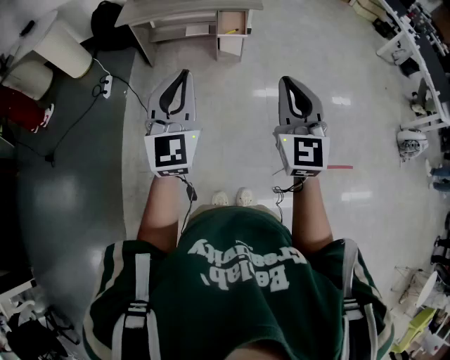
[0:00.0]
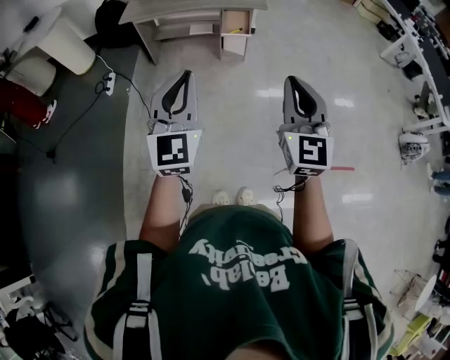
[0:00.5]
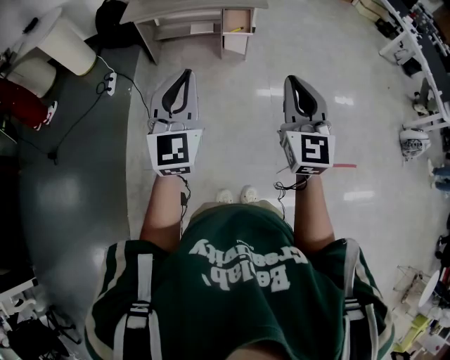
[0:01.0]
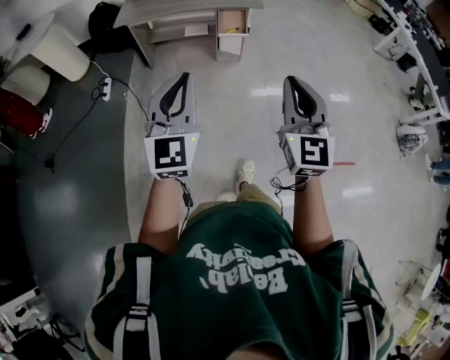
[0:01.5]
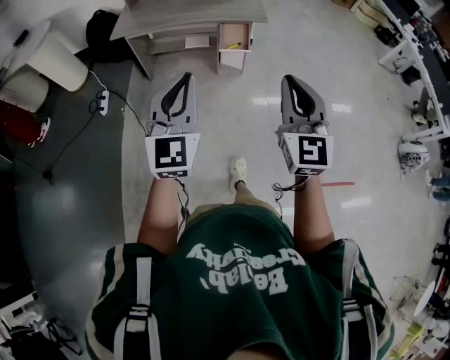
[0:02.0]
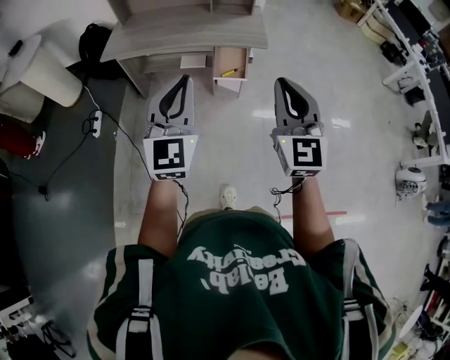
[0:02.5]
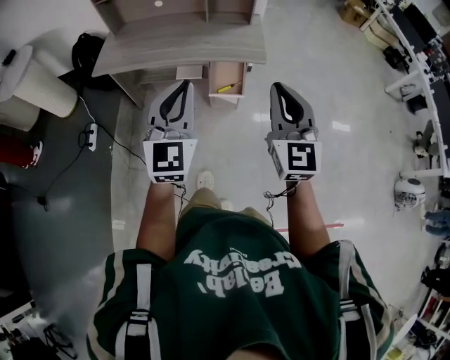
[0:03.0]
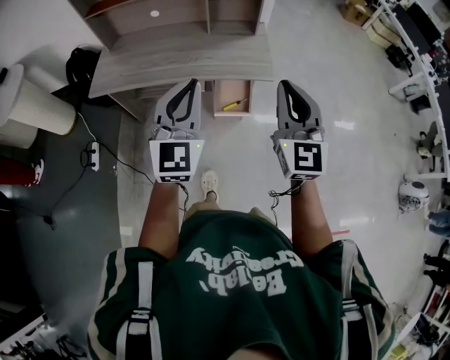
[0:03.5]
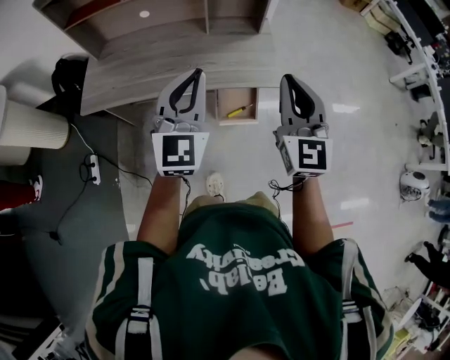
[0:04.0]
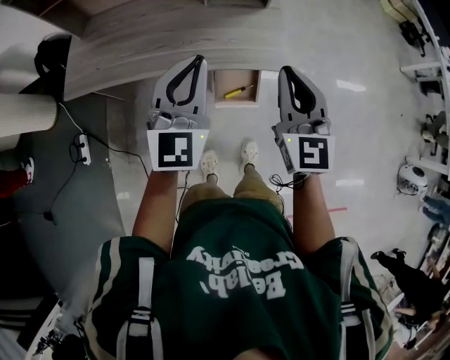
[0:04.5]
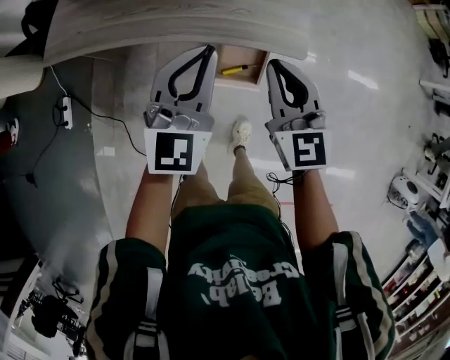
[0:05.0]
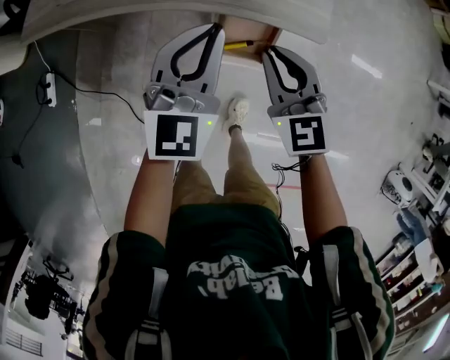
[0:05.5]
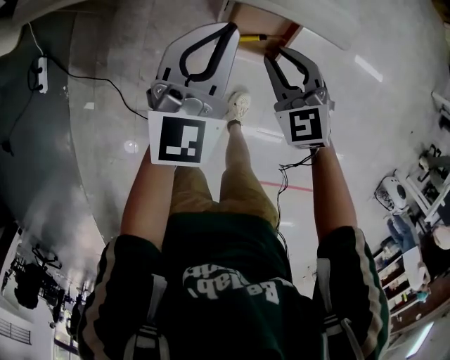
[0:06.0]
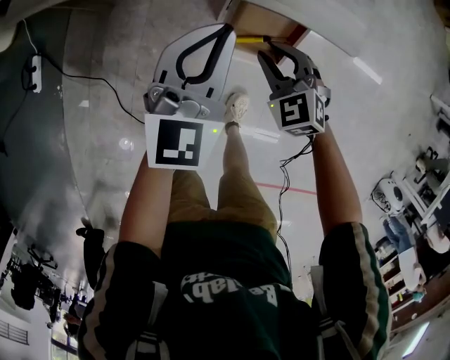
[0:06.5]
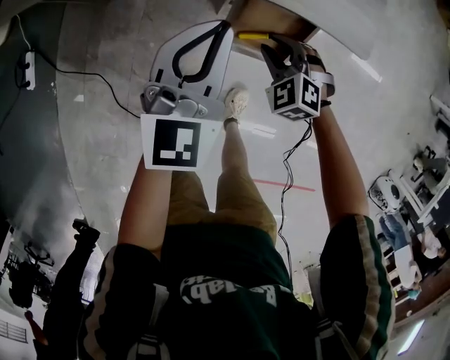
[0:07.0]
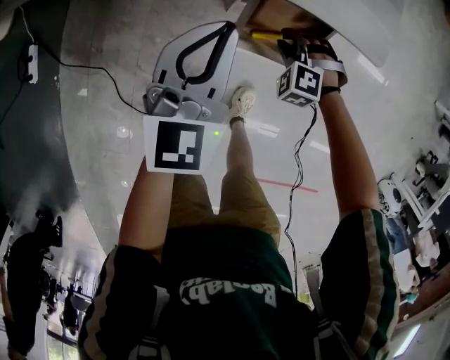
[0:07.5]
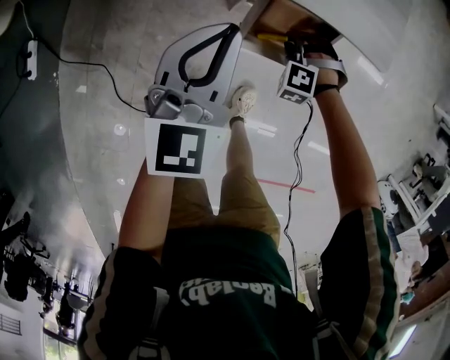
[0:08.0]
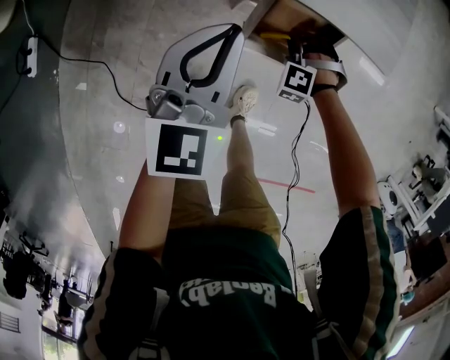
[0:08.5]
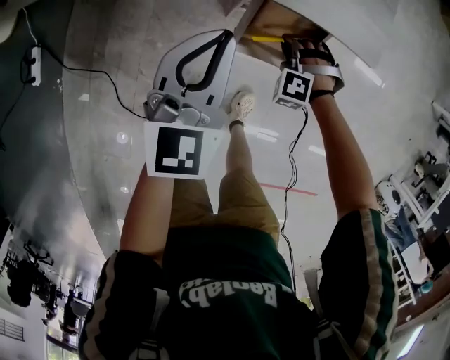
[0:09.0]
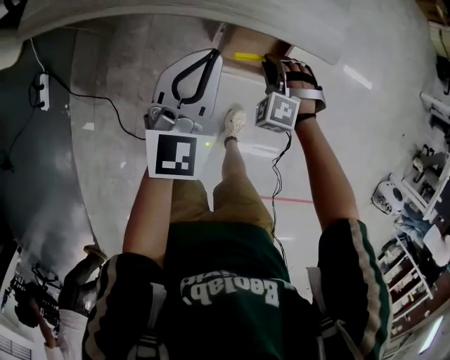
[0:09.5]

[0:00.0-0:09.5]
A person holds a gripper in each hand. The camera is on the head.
0.0 to 2.0 s: Both grippers travel together forward, roughly 15 cm.
2.0 to 4.0 s: The two grippers travel together, forward, approximately 70 cm.
4.0 to 5.5 s: The left gripper shifts roughly 30 cm downward and forward. The right gripper shifts approximately 35 cm downward, and rotates approximately 40 degrees.
5.5 to 7.5 s: The left gripper moves downward and to the left, some 15 cm; the right gripper goes approximately 35 cm downward, tips its fingers downward by about 40 degrees, and opens its fingers.
7.5 to 9.5 s: Both grippers travel together upward, about 10 cm.

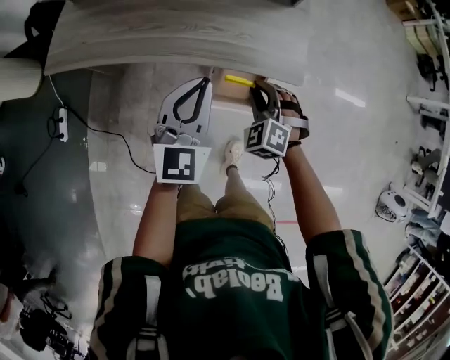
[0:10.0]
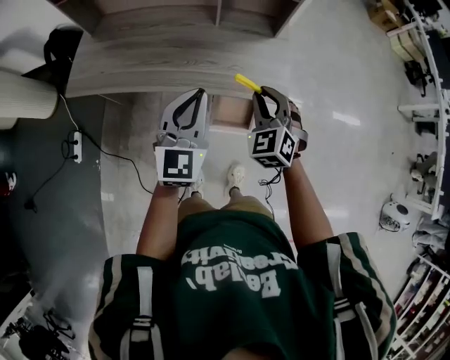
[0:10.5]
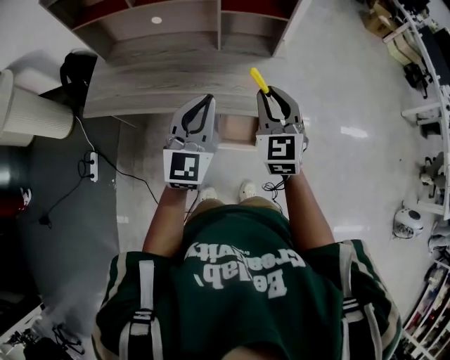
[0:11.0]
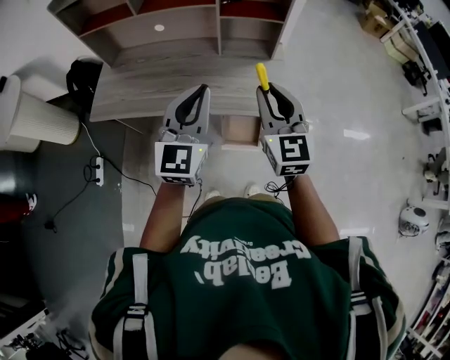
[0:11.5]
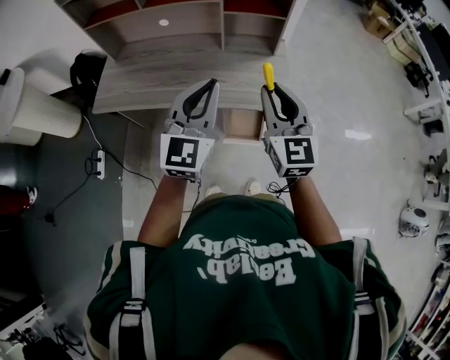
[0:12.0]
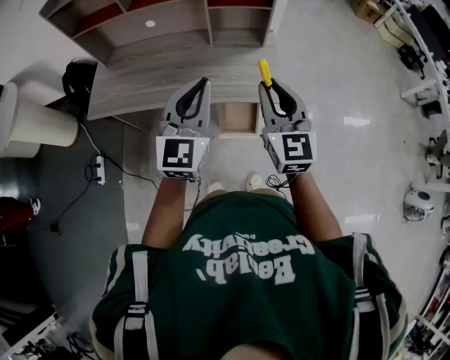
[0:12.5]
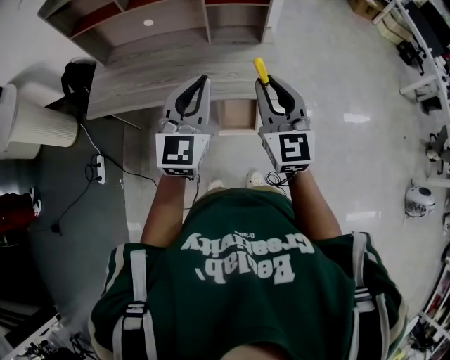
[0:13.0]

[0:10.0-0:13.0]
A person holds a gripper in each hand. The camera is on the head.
10.0 to 11.5 s: The left gripper travels upward by approximately 25 cm. The right gripper is displaced upward by roughly 35 cm, and points its fingers about 40 degrees further upward.
11.5 to 13.0 s: The right gripper moves backward, approximately 5 cm.

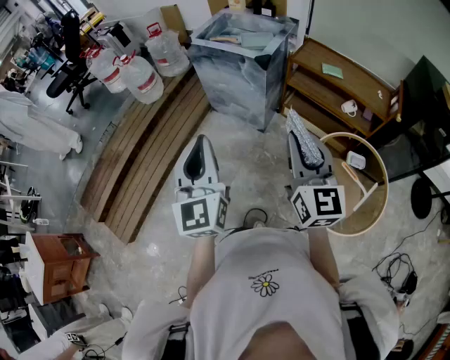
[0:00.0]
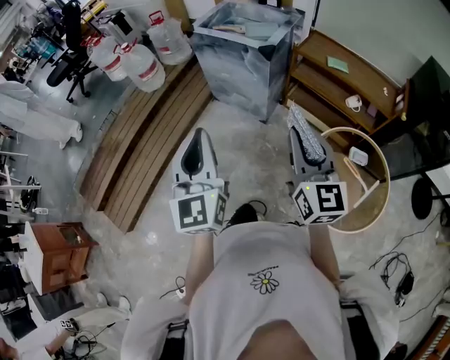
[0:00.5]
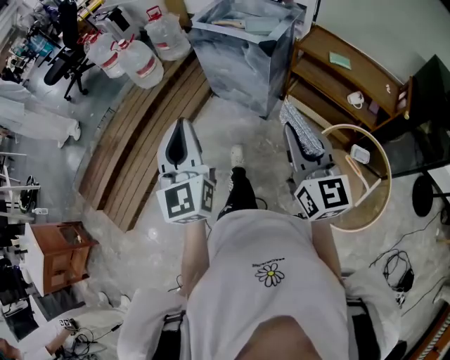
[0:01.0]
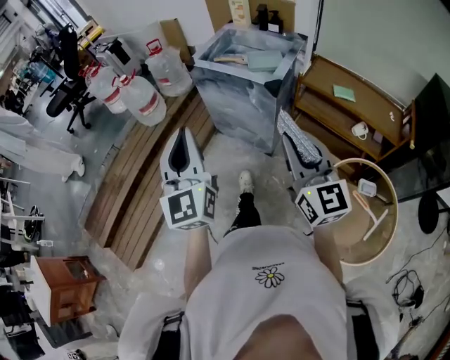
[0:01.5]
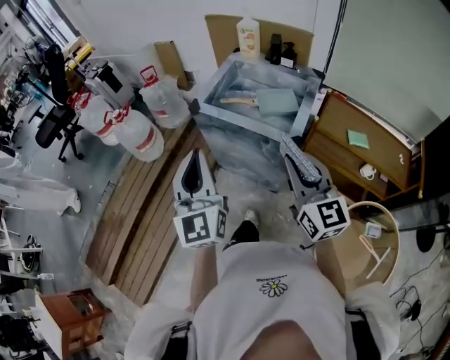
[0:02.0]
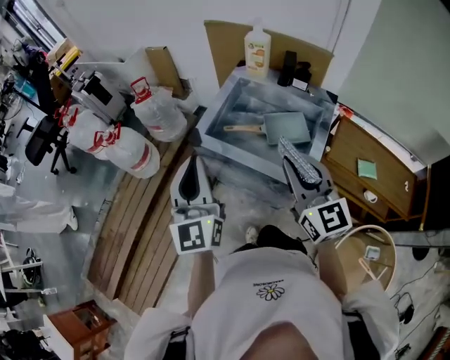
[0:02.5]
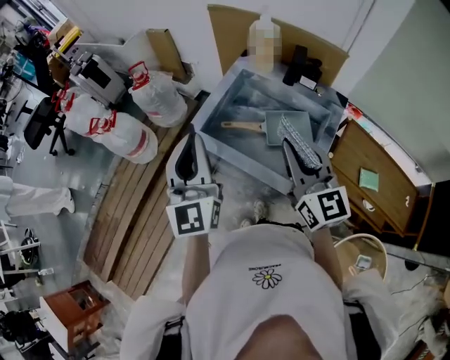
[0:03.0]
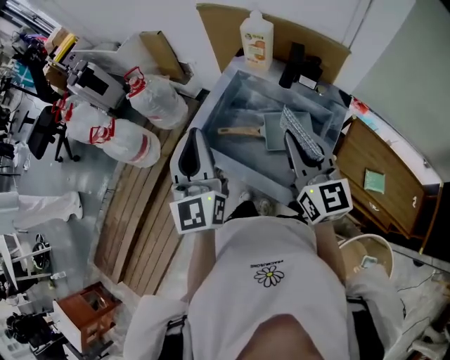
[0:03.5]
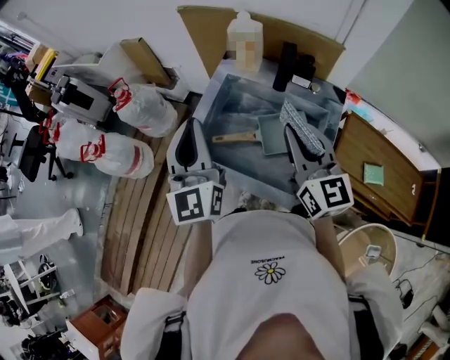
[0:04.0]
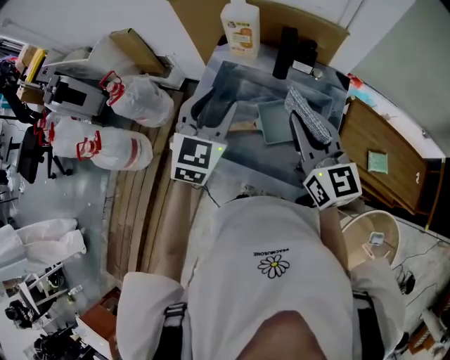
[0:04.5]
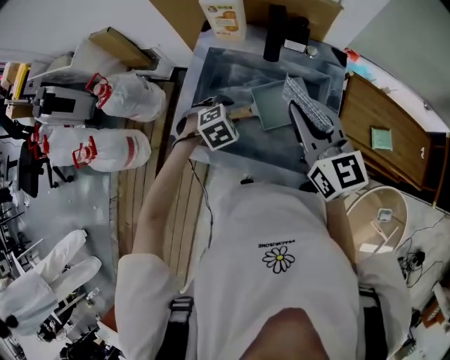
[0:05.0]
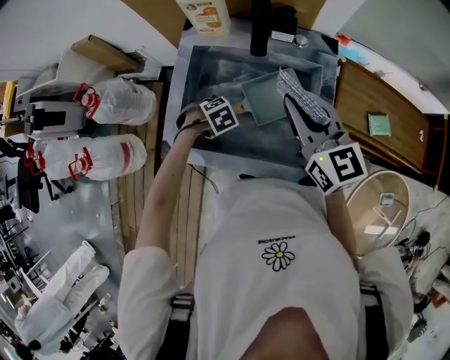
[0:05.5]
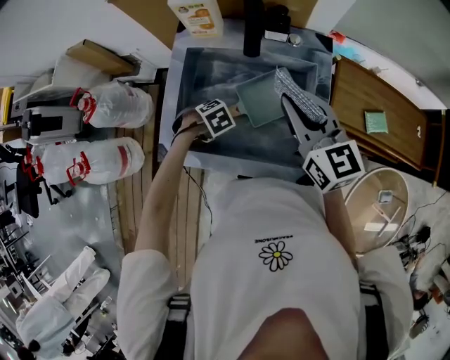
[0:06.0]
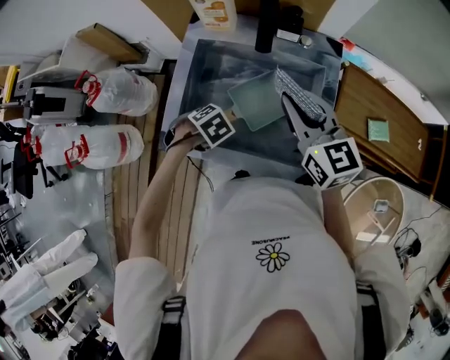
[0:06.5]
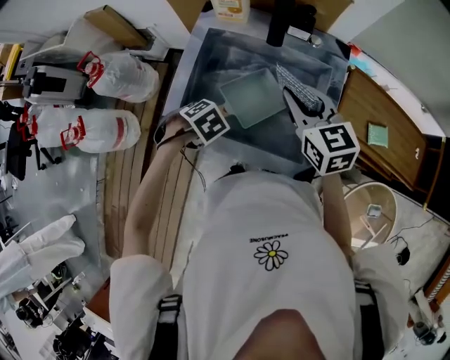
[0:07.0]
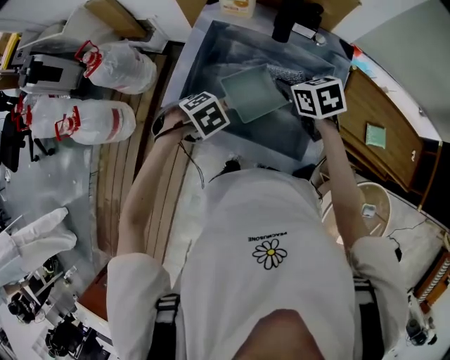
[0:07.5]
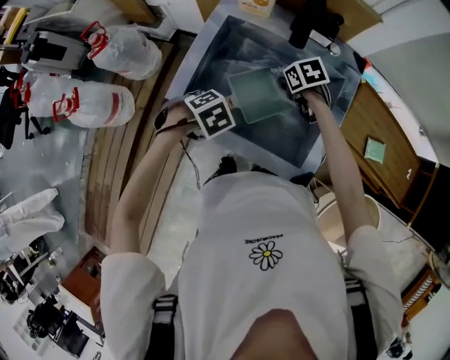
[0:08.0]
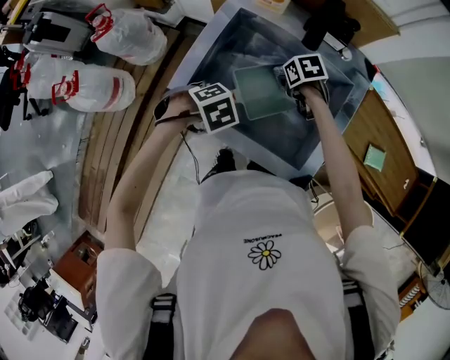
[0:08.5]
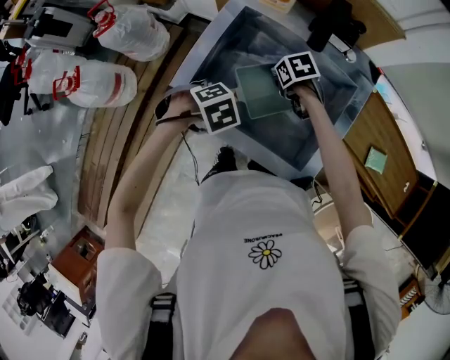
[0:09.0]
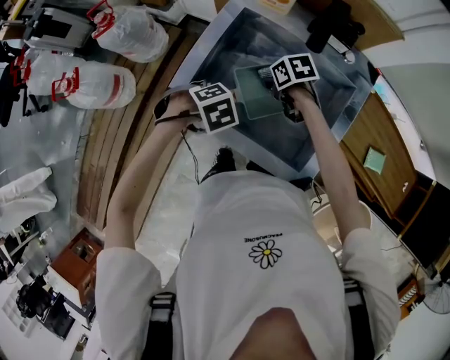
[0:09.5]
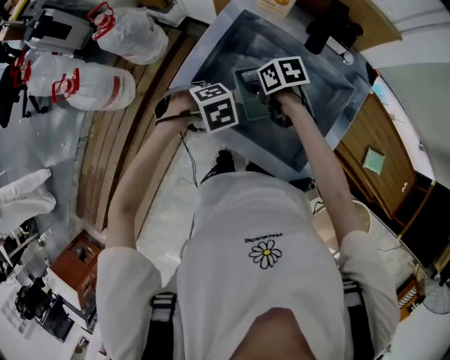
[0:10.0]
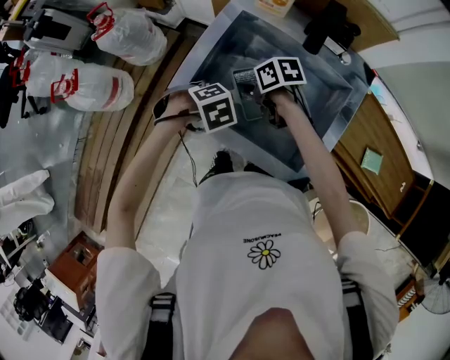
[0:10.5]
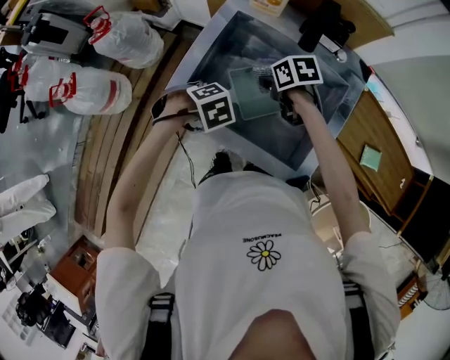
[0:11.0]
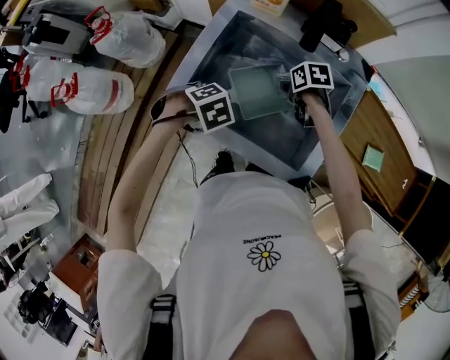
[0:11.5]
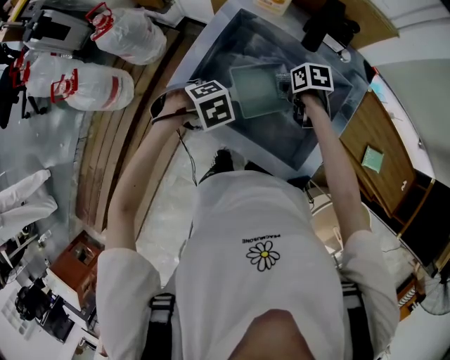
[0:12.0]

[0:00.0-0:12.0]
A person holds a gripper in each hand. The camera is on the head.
0.0 to 2.0 s: The right gripper moves roughly 40 cm.
2.0 to 4.0 s: The right gripper changes place by about 40 cm.
4.0 to 6.0 s: The right gripper shifts some 5 cm downward.
6.0 to 8.0 s: The right gripper moves downward, approximately 25 cm, and angles its fingers downward, by some 50 degrees.
8.0 to 10.0 s: The right gripper moves approximately 15 cm.
10.0 to 12.0 s: The right gripper moves some 15 cm.

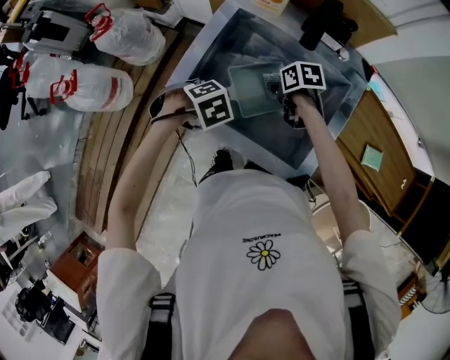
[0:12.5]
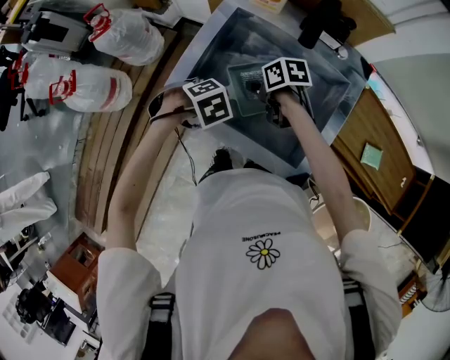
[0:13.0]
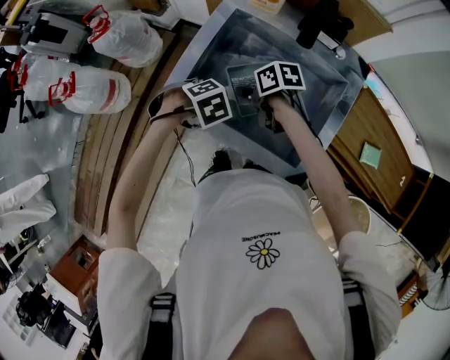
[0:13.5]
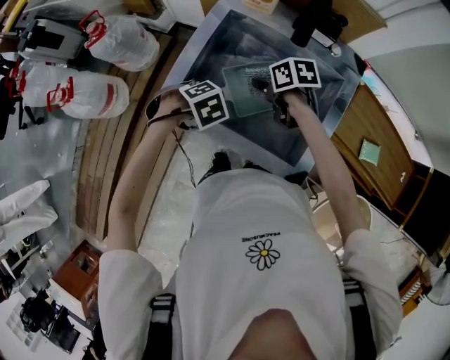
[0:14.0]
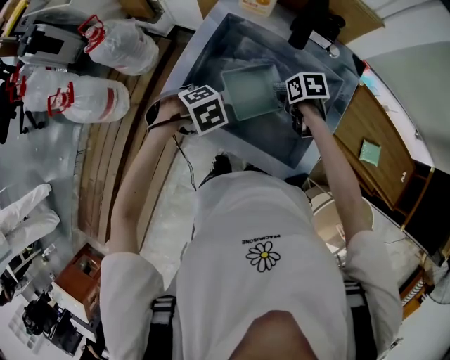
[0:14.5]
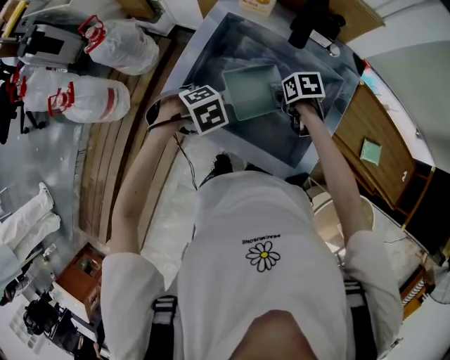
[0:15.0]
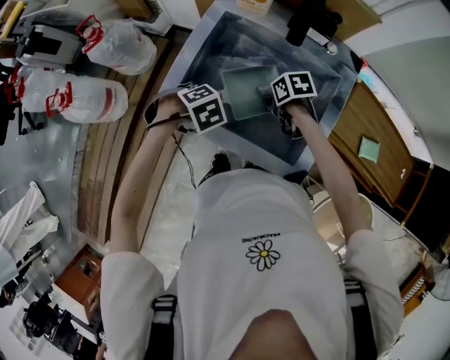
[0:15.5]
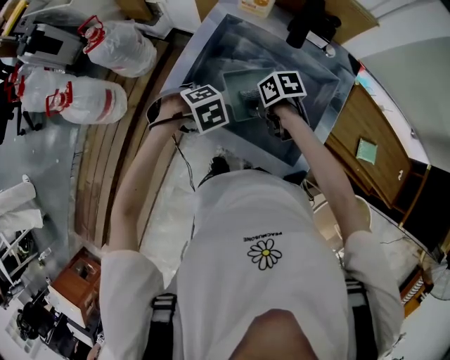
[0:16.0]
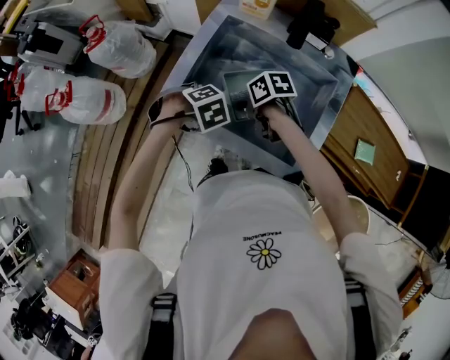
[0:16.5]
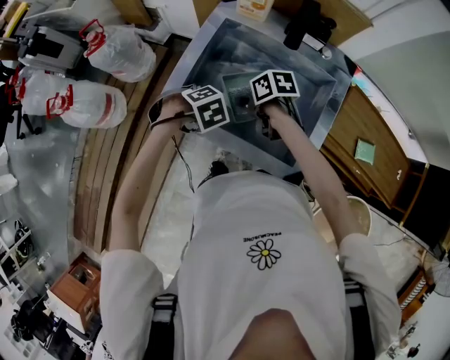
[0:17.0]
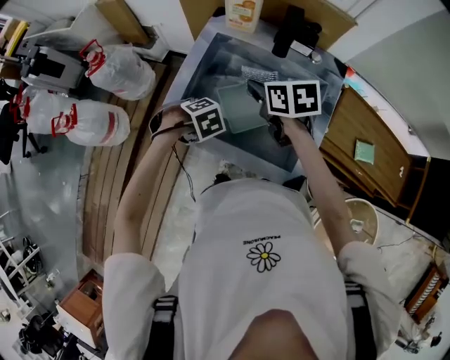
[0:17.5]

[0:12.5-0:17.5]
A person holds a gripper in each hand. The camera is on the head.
15.0 to 17.5 s: The right gripper shifts some 20 cm upward, and changes its angle by about 30 degrees.
